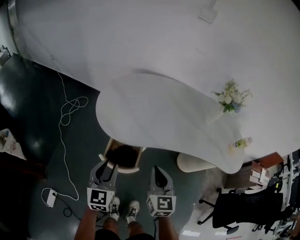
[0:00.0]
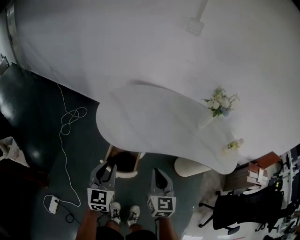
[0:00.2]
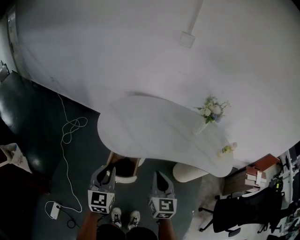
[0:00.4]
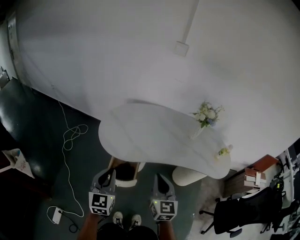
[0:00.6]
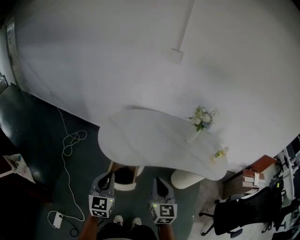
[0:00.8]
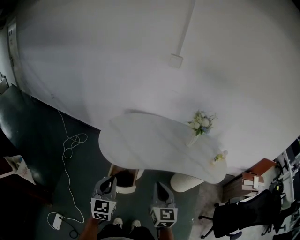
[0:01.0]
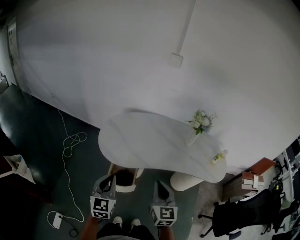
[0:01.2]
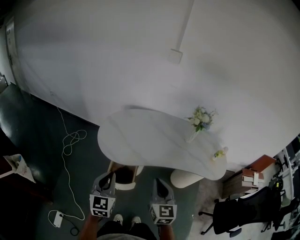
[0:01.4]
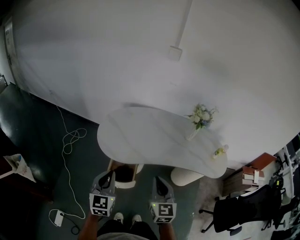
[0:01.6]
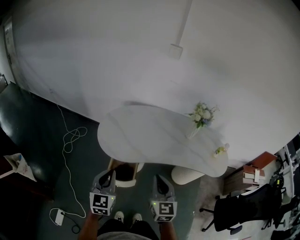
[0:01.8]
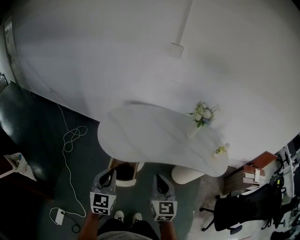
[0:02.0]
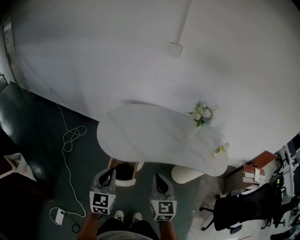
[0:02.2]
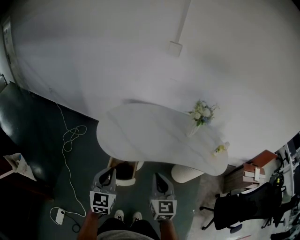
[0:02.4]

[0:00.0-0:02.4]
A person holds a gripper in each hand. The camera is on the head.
0:00.0 to 0:01.2: Both grippers move upward, roughly 20 cm. The left gripper closes up.
0:01.2 to 0:02.4: There are only small adjustments of the grippers.

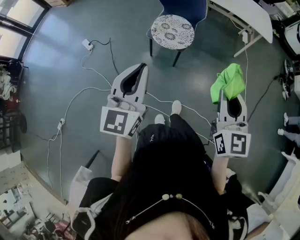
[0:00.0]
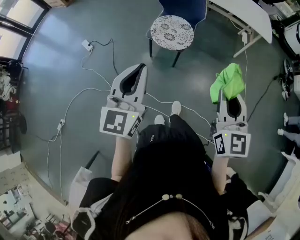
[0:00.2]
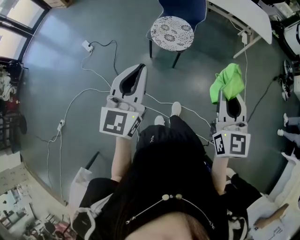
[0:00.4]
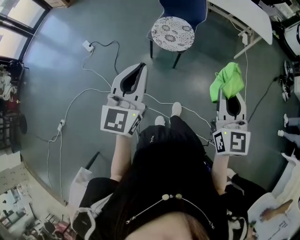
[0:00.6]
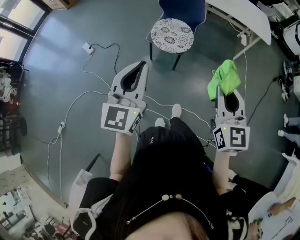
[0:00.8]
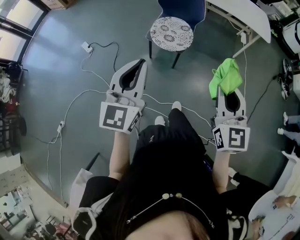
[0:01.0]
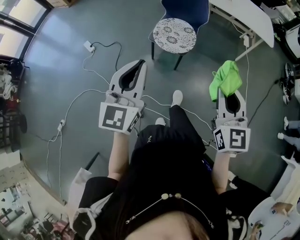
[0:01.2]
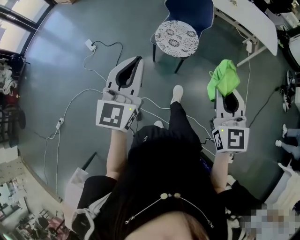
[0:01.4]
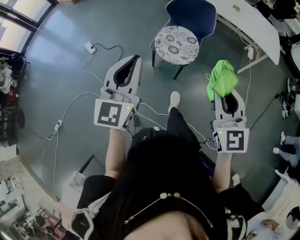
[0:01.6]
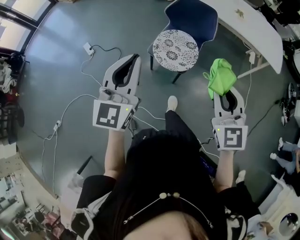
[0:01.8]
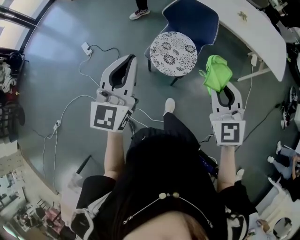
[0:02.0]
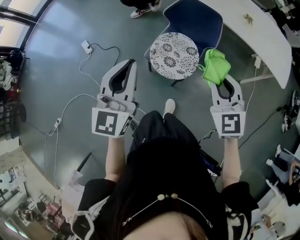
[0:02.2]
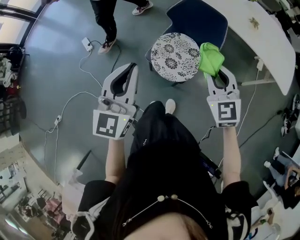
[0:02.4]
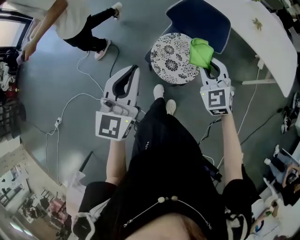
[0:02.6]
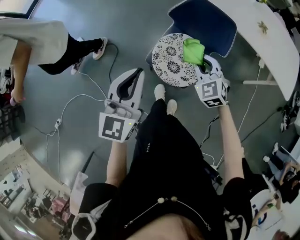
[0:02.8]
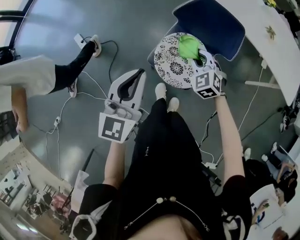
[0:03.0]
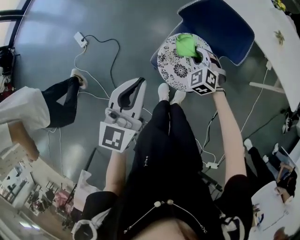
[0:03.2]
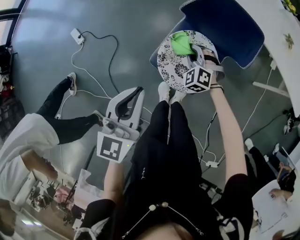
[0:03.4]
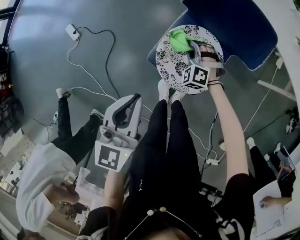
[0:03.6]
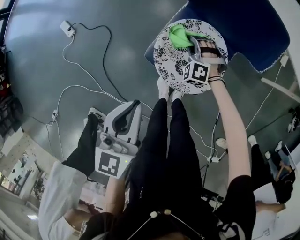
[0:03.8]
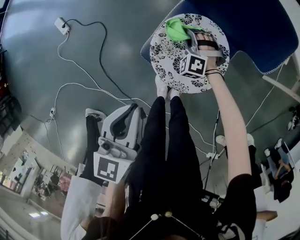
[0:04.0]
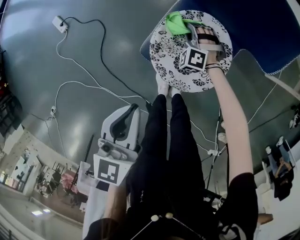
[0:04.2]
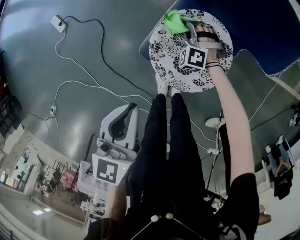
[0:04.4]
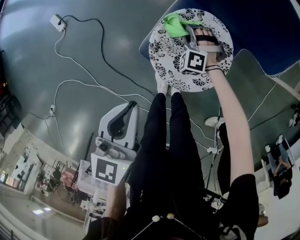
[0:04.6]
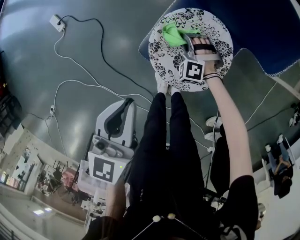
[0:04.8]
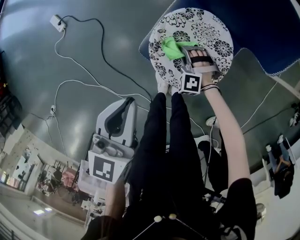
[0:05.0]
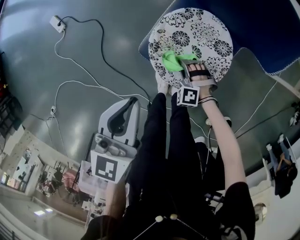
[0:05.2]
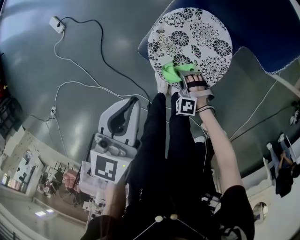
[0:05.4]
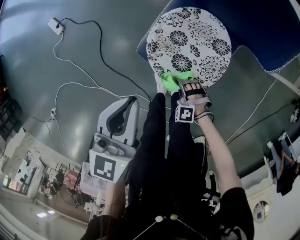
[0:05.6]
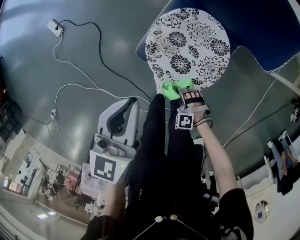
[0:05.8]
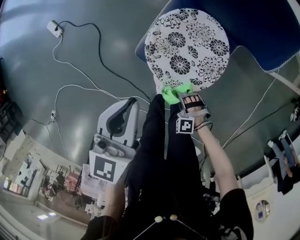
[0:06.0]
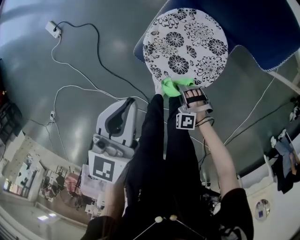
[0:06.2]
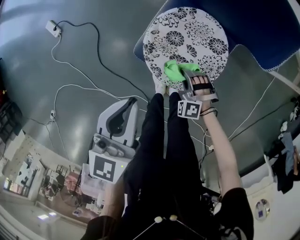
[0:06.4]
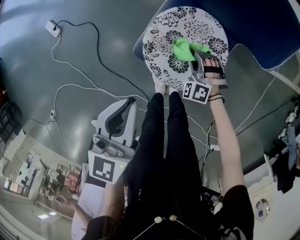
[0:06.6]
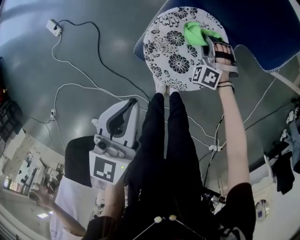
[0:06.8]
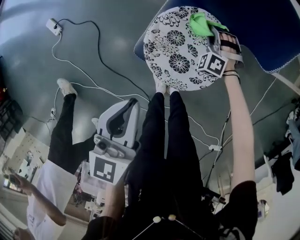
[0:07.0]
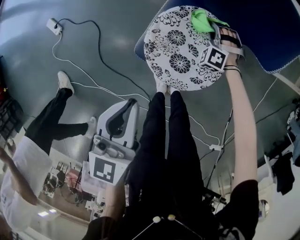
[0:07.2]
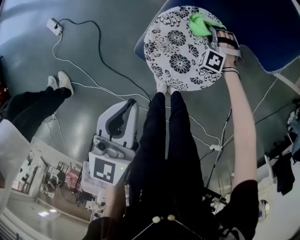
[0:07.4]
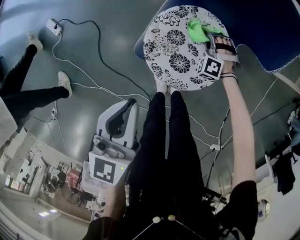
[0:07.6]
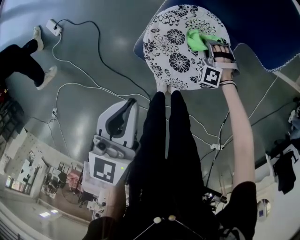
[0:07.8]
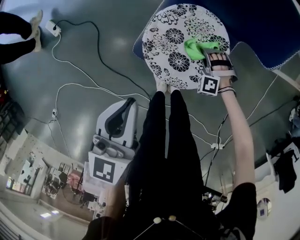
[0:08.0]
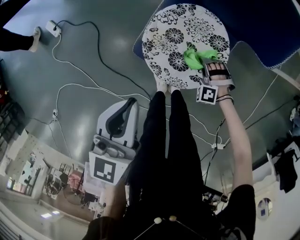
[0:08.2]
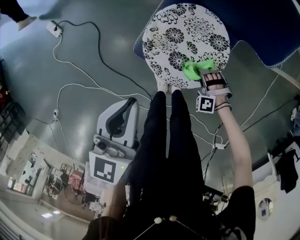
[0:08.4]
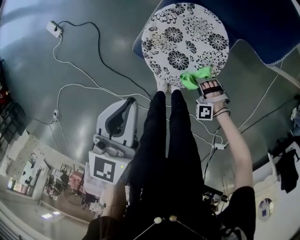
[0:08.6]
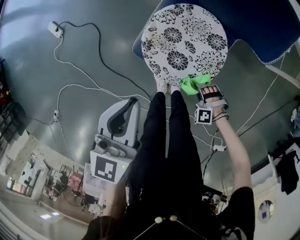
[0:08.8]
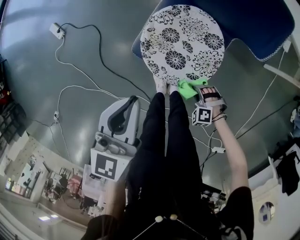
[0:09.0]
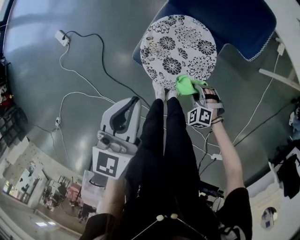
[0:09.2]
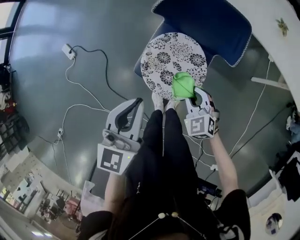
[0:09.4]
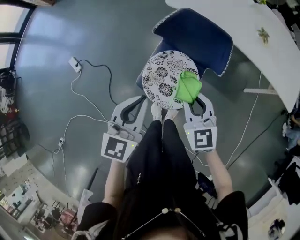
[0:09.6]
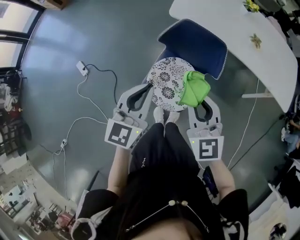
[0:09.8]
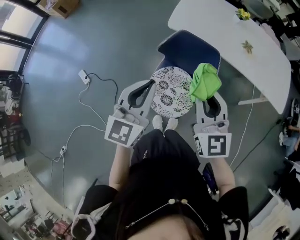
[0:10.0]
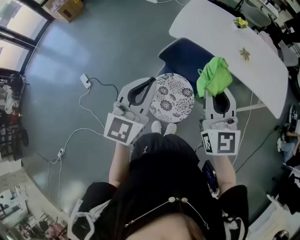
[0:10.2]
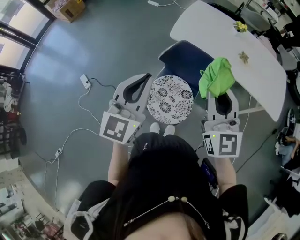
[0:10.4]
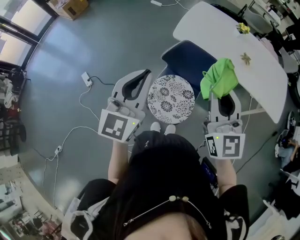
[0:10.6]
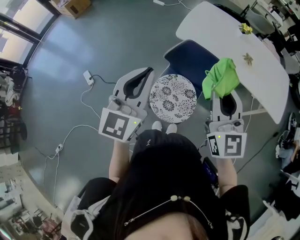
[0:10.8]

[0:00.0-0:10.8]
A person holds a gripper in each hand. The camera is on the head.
0:00.0 to 0:01.6: Both grippers travel together forward, some 15 cm.
0:01.6 to 0:03.0: The right gripper shifts approximately 60 cm forward and downward, and tips its fingers downward by roughly 30 degrees. The left gripper goes about 35 cm forward.
0:03.0 to 0:04.6: The left gripper shifts roughly 20 cm downward, and swivels some 20 degrees. The right gripper travels downward by some 35 cm, and rotates roughly 30 degrees.
0:04.6 to 0:06.2: The right gripper shifts approximately 25 cm backward.
0:06.2 to 0:07.8: The right gripper goes about 20 cm forward.
0:07.8 to 0:09.2: The right gripper shifts about 20 cm backward and upward, and swivels about 30 degrees; the left gripper shifts roughly 5 cm upward.
0:09.2 to 0:10.8: The left gripper goes approximately 35 cm upward, and turns by approximately 30 degrees, while the right gripper shifts some 60 cm upward, and angles its fingers upward, by about 70 degrees.

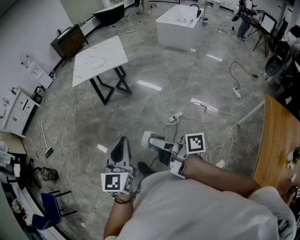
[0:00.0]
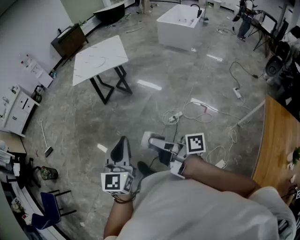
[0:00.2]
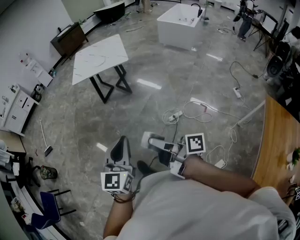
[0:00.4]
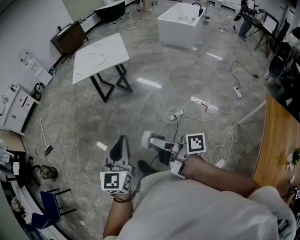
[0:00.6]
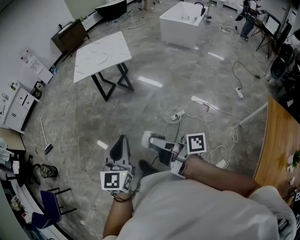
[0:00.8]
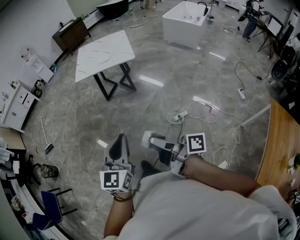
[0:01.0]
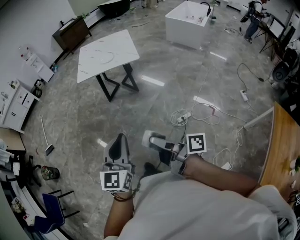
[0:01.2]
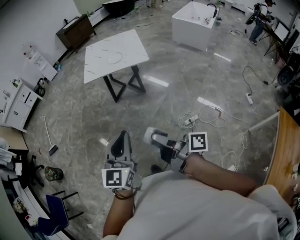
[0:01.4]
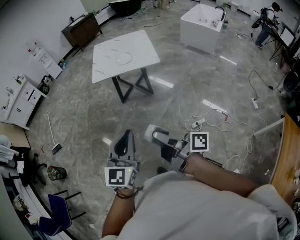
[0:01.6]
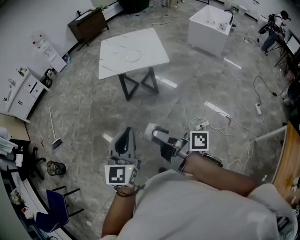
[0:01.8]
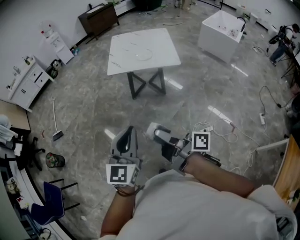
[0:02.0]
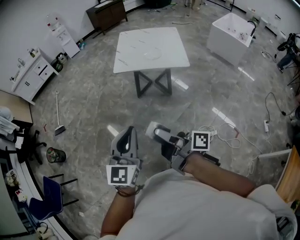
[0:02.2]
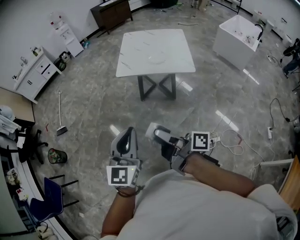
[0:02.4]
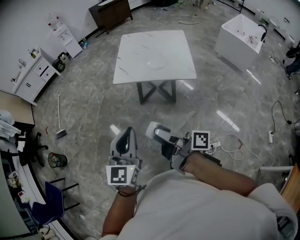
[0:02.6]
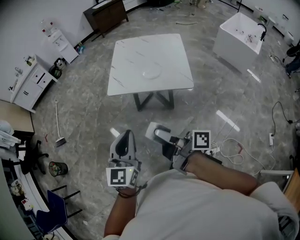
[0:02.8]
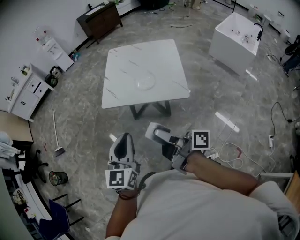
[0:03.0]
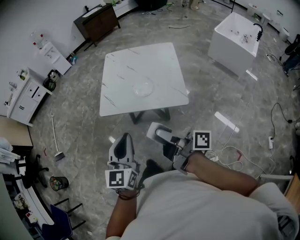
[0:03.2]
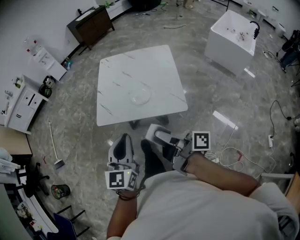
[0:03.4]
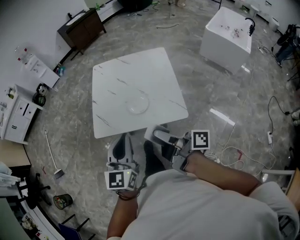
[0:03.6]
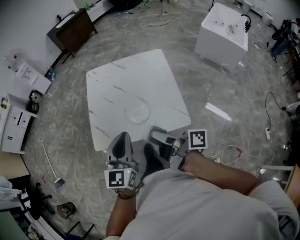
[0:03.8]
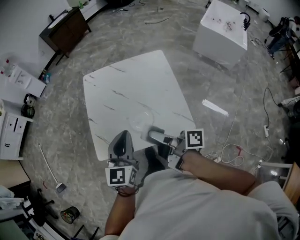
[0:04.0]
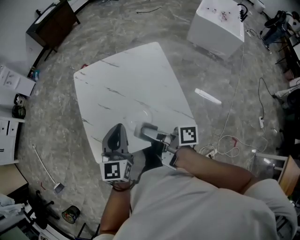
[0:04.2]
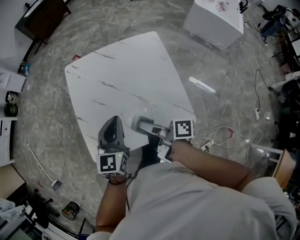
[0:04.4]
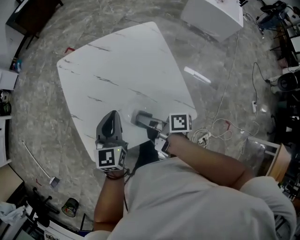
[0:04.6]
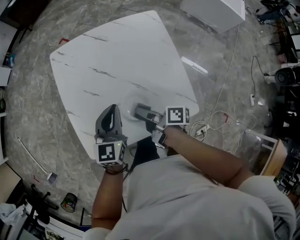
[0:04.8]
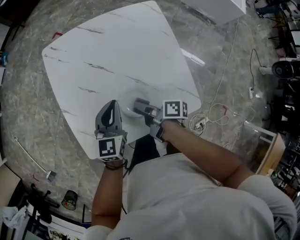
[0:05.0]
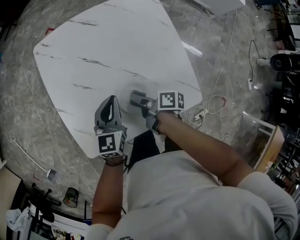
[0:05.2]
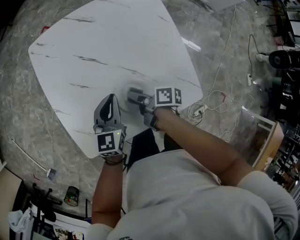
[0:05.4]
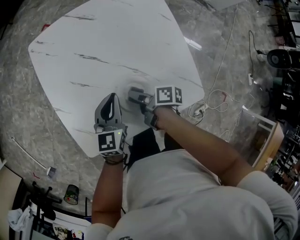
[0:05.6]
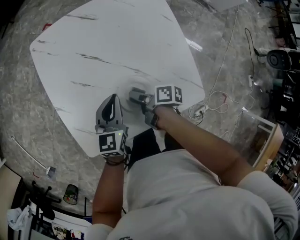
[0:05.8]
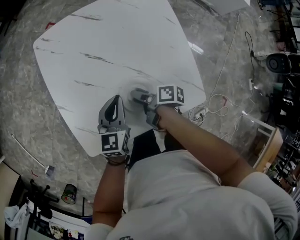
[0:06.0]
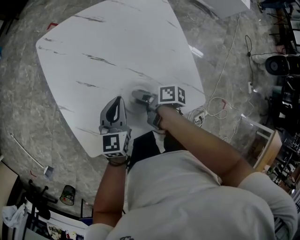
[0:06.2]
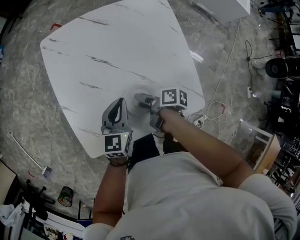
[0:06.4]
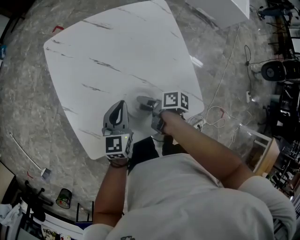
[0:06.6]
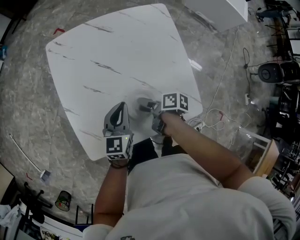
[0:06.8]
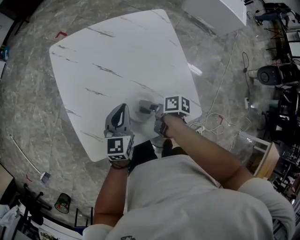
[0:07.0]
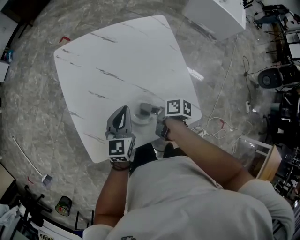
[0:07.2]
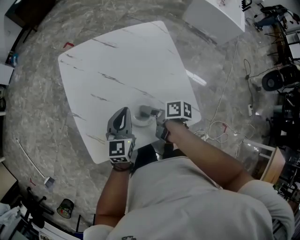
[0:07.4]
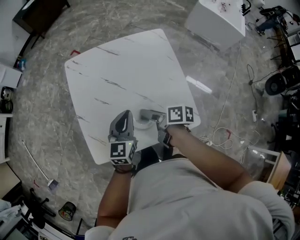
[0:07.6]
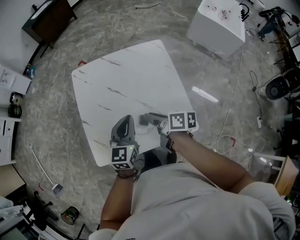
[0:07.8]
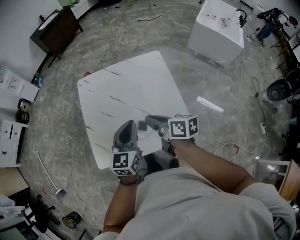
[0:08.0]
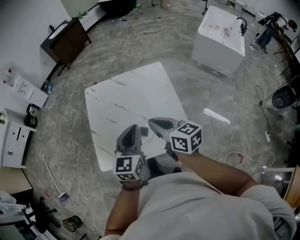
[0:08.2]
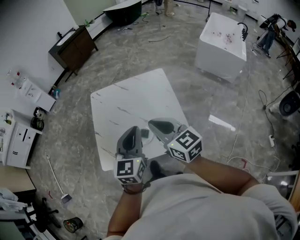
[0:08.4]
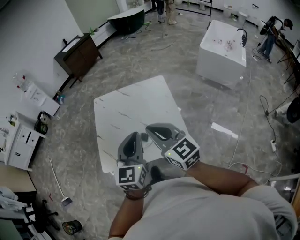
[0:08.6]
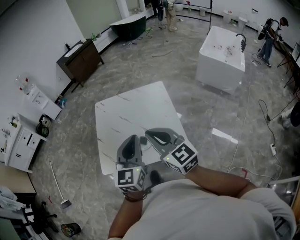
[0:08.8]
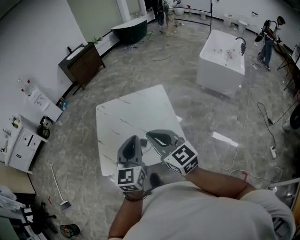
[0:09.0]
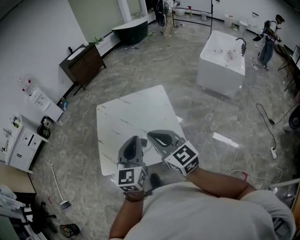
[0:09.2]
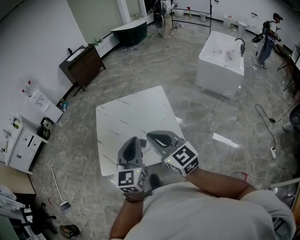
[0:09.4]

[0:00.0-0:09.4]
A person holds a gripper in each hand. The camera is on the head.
0:00.0 to 0:01.6: The left gripper ends up some 30 cm from where it was.
0:01.6 to 0:03.2: The left gripper changes place by about 50 cm.
0:03.2 to 0:04.8: The left gripper moves some 60 cm, and turns by about 20 degrees.
0:04.8 to 0:06.2: The left gripper goes about 10 cm downward.
0:06.2 to 0:07.8: The left gripper is displaced upward by some 15 cm.
0:07.8 to 0:09.4: The left gripper goes some 25 cm upward.

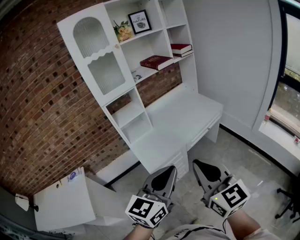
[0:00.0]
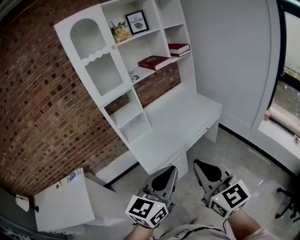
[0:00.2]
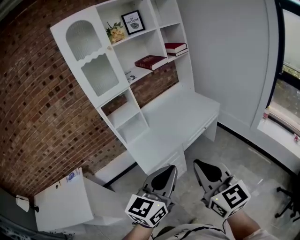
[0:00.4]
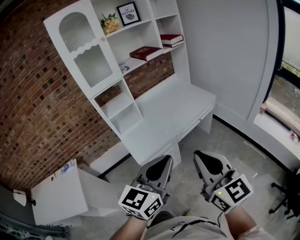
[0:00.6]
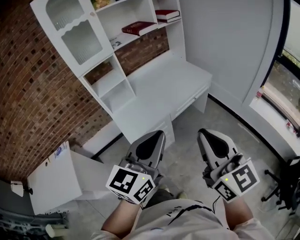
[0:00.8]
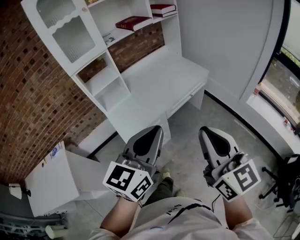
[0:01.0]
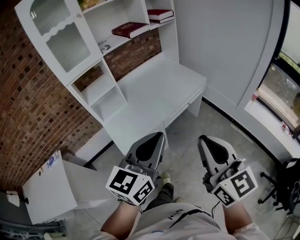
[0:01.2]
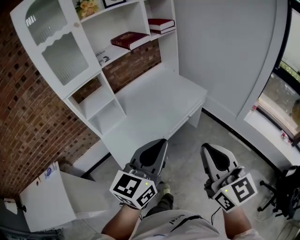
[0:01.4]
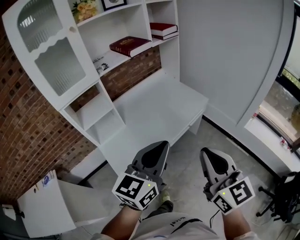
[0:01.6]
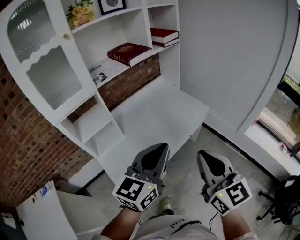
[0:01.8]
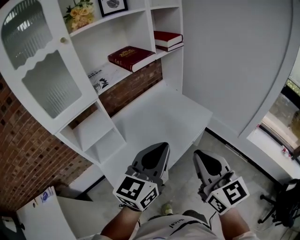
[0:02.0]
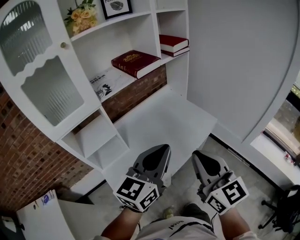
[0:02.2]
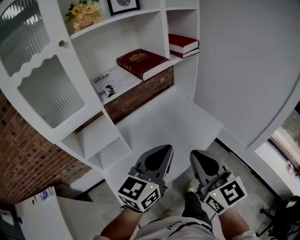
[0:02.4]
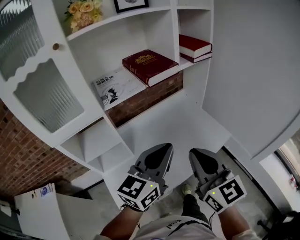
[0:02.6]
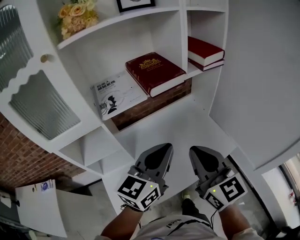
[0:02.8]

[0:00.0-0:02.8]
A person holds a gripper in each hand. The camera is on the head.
0:00.0 to 0:01.4: The two grippers go roughly 20 cm forward and to the right.
0:01.4 to 0:02.8: The pair of grippers is taken forward, some 40 cm.
